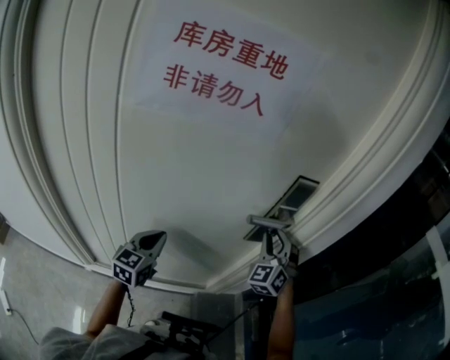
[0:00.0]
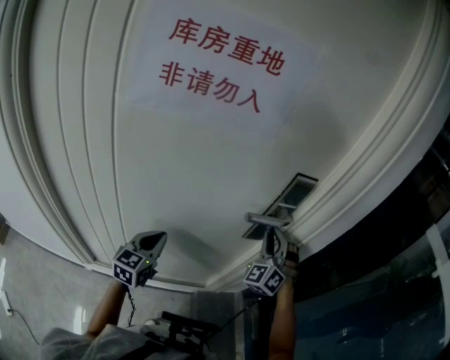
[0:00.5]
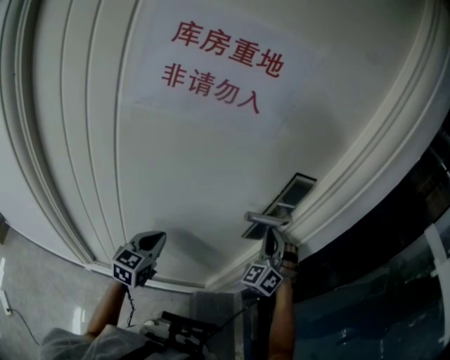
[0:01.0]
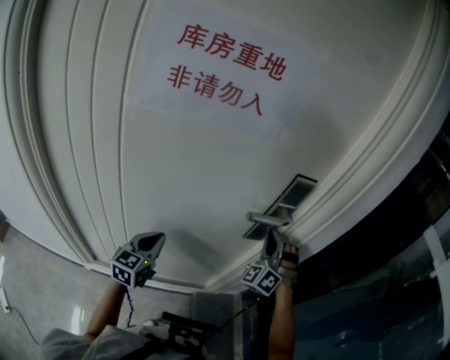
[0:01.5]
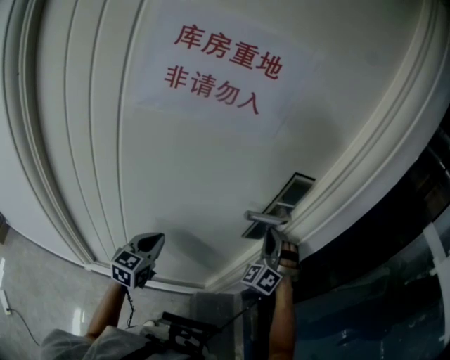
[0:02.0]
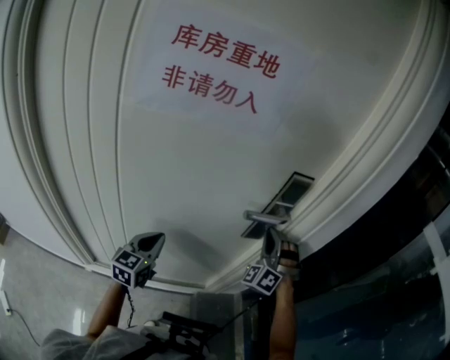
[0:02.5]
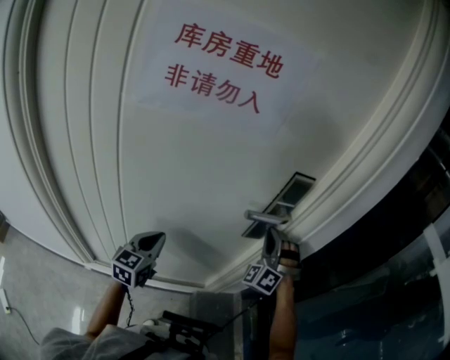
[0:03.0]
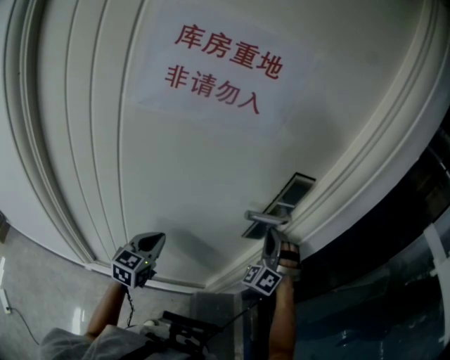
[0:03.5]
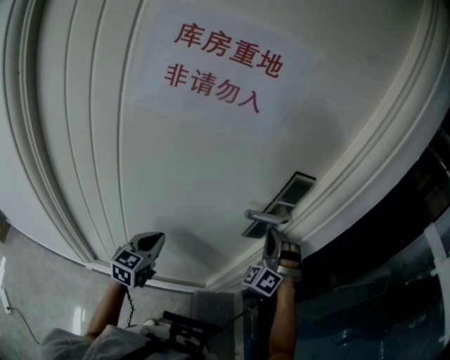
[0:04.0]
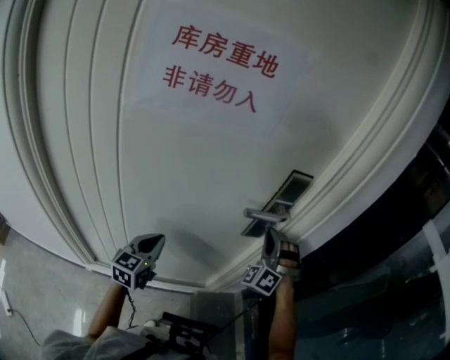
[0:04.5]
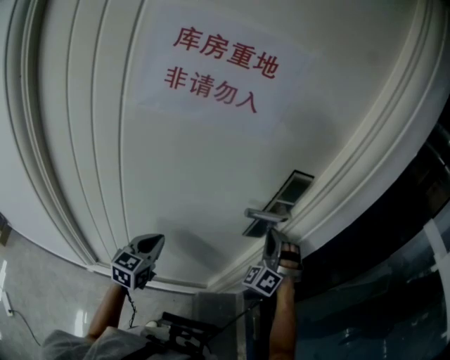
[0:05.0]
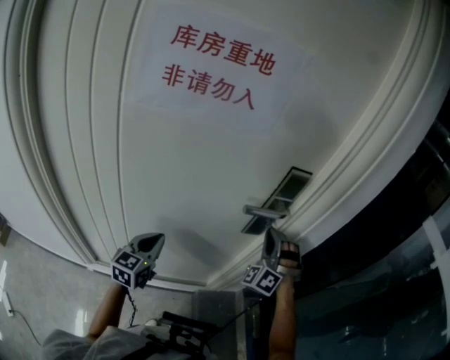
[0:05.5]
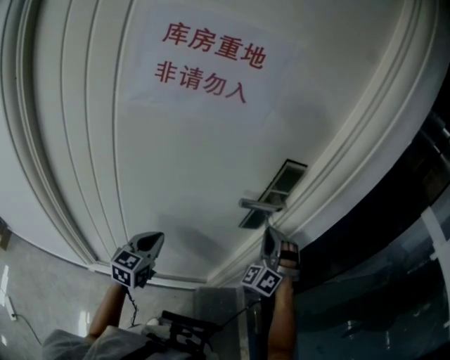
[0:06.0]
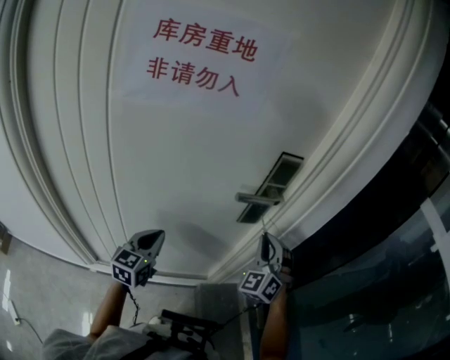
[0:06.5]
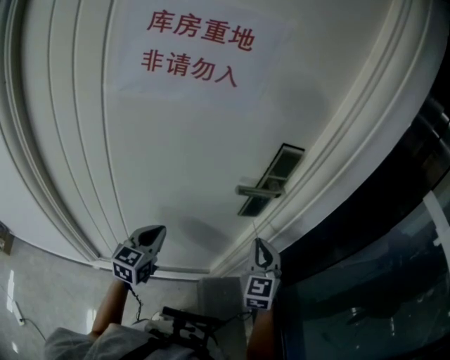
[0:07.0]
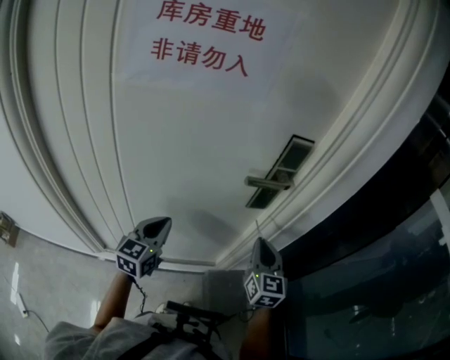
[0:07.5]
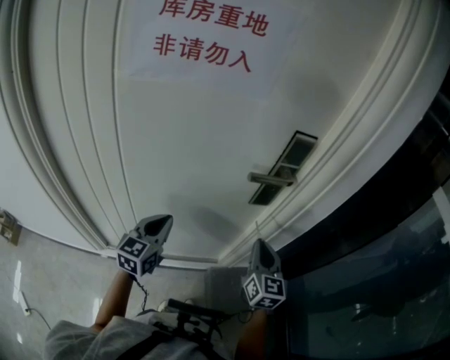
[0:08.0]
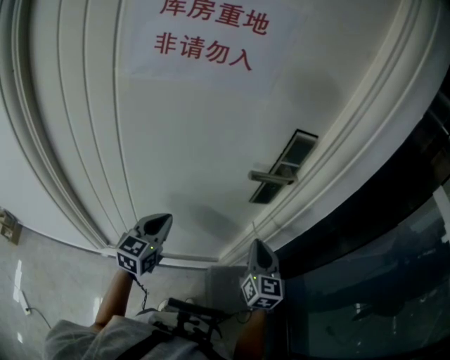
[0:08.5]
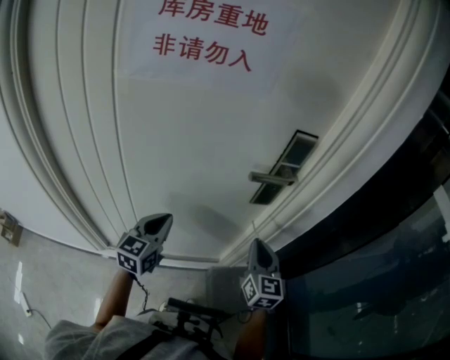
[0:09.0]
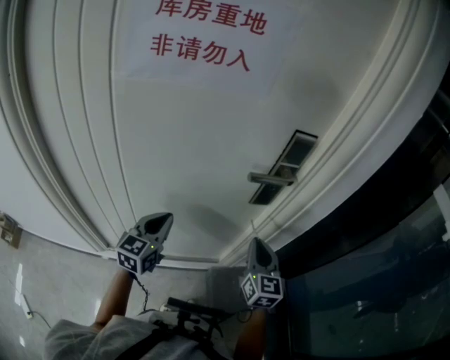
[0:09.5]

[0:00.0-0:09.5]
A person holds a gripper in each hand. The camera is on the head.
0:00.0 to 0:02.0: The right gripper turns by roughly 30 degrees, and closes its fingers.
0:02.0 to 0:04.0: There are only small adjustments of the grippers.
0:04.0 to 0:05.5: Both grippers stay put.
0:05.5 to 0:07.5: The right gripper is displaced backward and downward by approximately 10 cm, and twists some 80 degrees clockwise, seen from behind.
0:07.5 to 0:09.5: The grippers stay close to where they were, moving slightly.

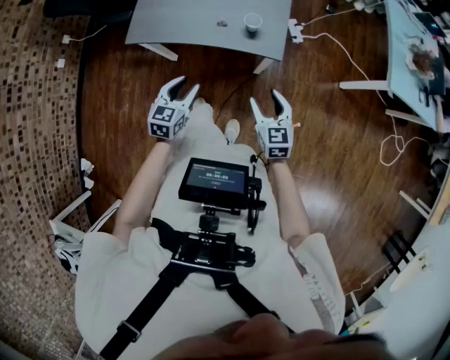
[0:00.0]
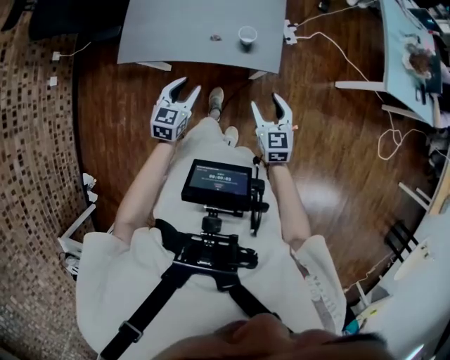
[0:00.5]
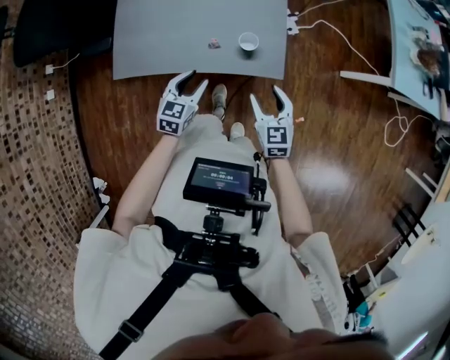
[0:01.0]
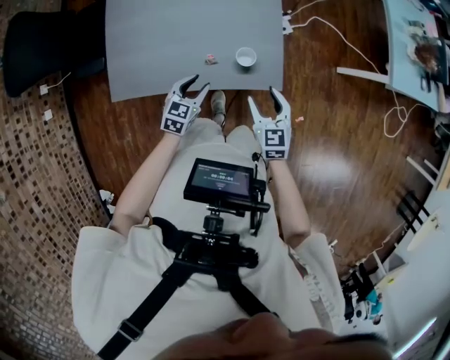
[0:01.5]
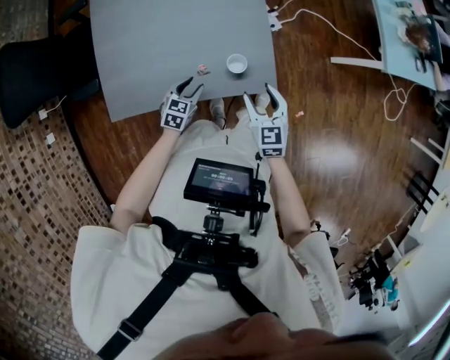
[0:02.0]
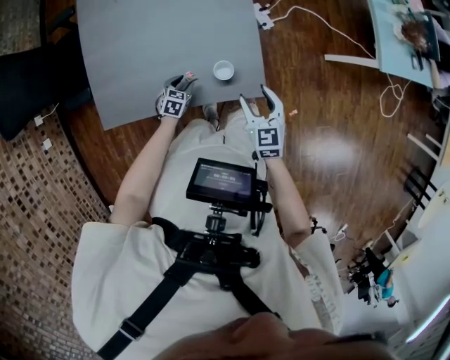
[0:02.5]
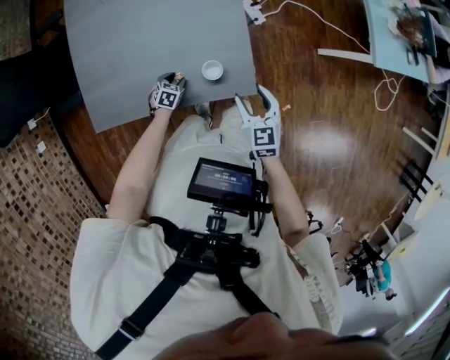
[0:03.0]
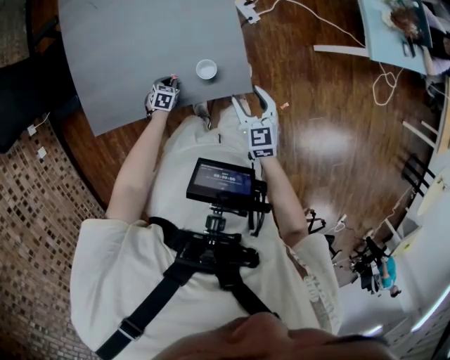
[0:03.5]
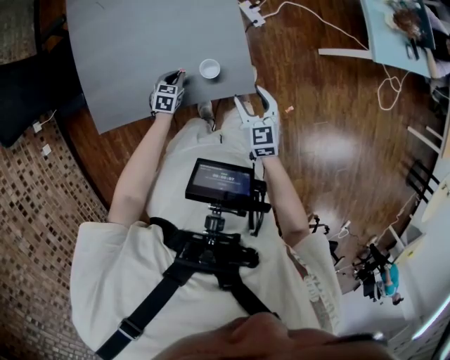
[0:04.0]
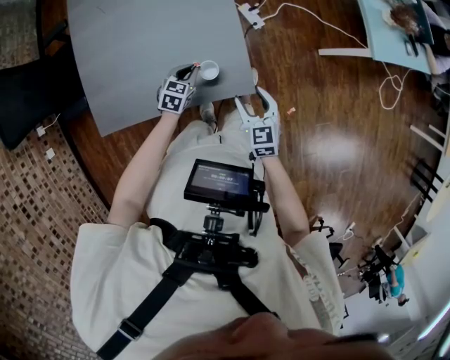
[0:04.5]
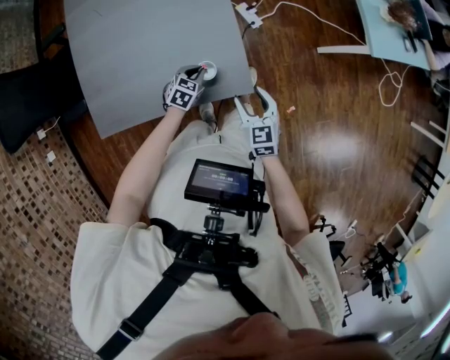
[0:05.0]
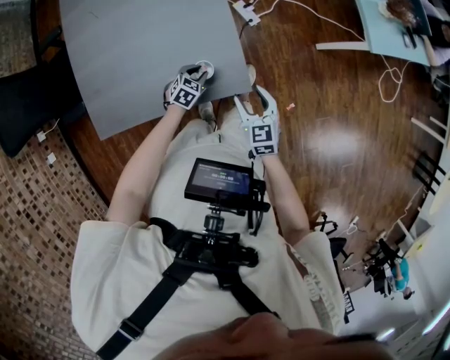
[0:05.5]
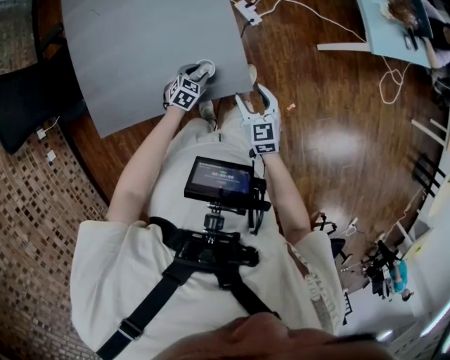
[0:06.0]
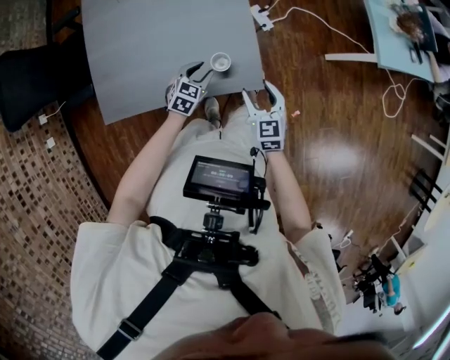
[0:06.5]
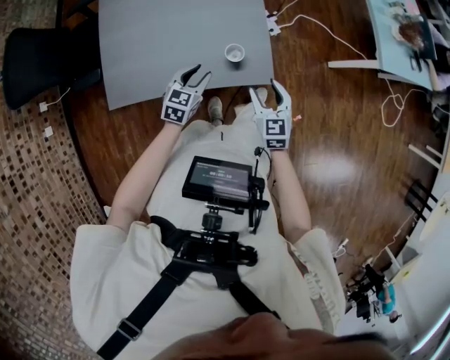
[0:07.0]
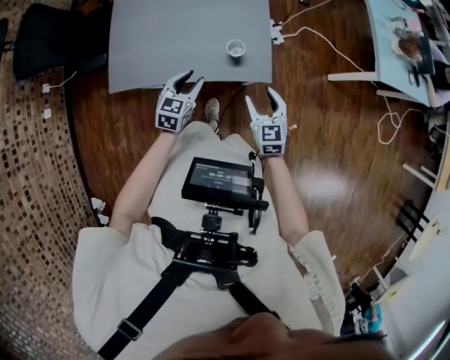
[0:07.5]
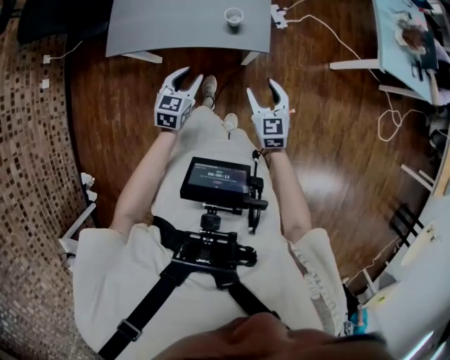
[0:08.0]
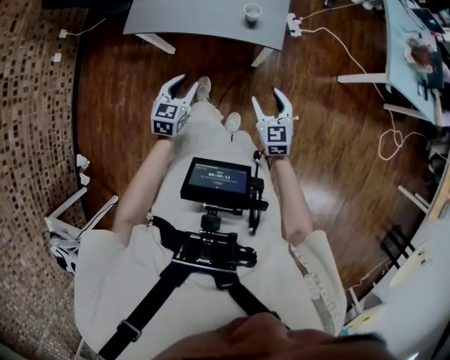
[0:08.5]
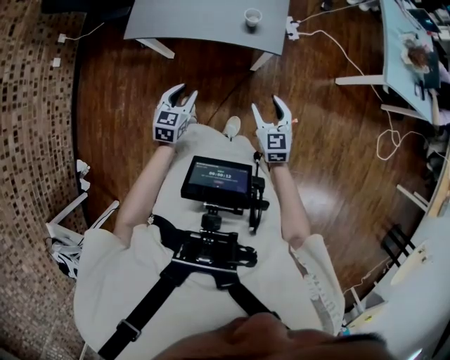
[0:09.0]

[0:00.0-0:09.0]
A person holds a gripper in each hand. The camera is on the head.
0:00.0 to 0:02.0: The left gripper is displaced forward and downward by roughly 30 cm, and turns by approximately 30 degrees; the right gripper travels forward by approximately 20 cm.
0:02.0 to 0:04.5: The right gripper travels to the right by roughly 5 cm; the left gripper travels forward and to the right by about 15 cm, travels downward and back again, roughly 15 cm each way, and closes up.
0:04.5 to 0:07.0: The right gripper moves roughly 5 cm. Meanwhile the left gripper is displaced backward and upward by about 15 cm, and opens its fingers.
0:07.0 to 0:09.0: The two grippers go about 25 cm backward. The left gripper swivels roughly 20 degrees.

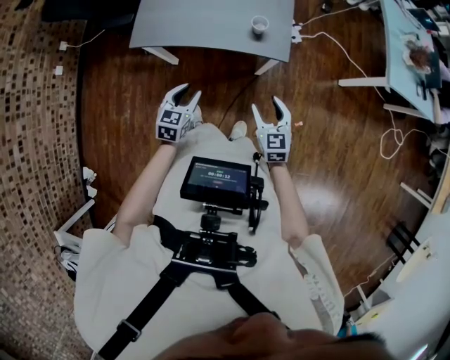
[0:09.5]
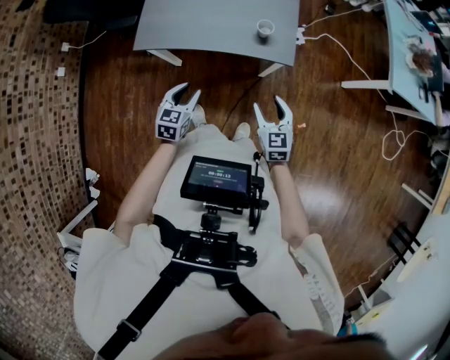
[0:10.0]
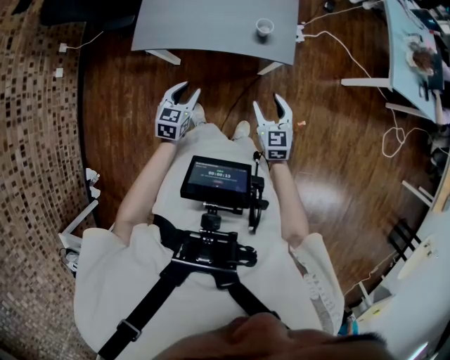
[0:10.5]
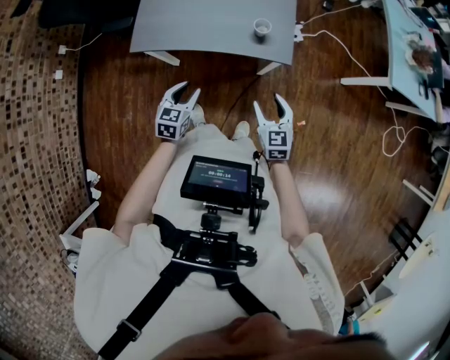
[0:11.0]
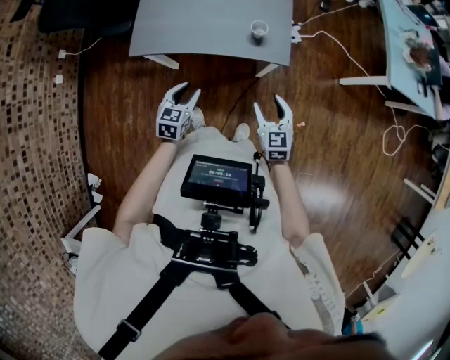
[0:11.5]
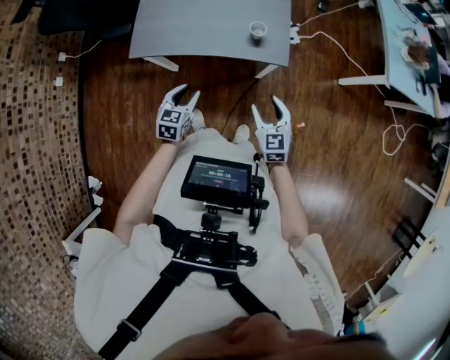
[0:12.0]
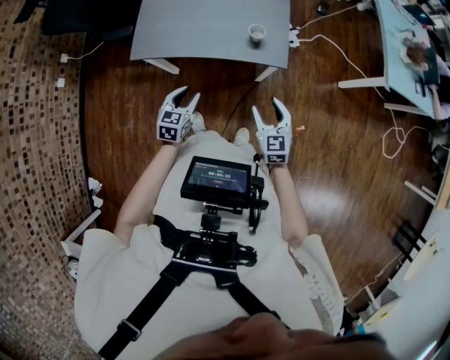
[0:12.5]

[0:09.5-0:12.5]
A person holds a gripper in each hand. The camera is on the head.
0:09.5 to 0:11.0: The grippers move only a little.
0:11.0 to 0:12.5: The two grippers keep their place.

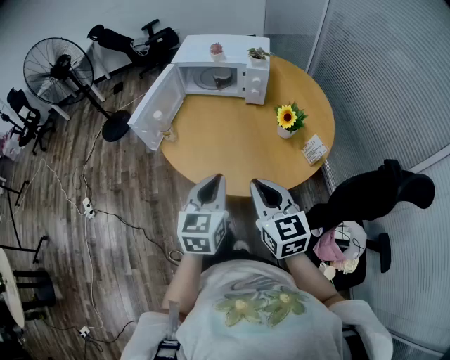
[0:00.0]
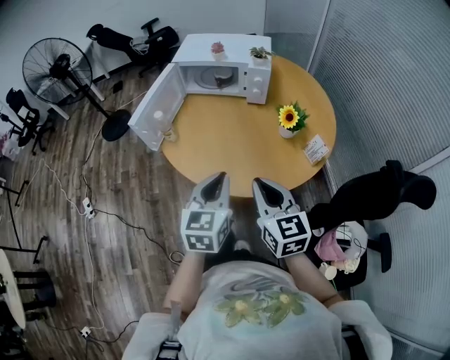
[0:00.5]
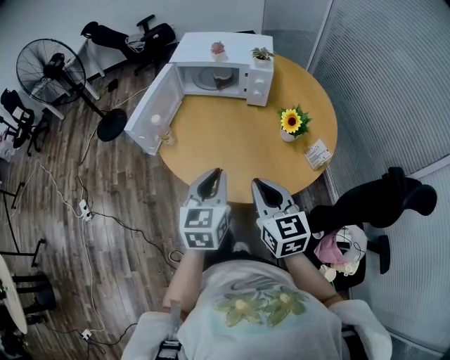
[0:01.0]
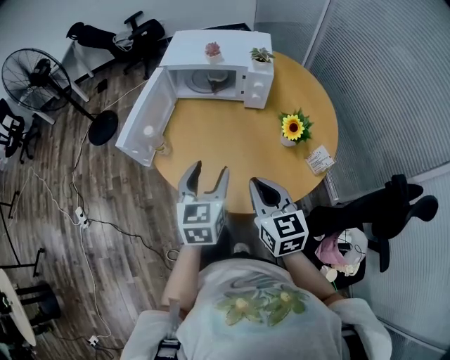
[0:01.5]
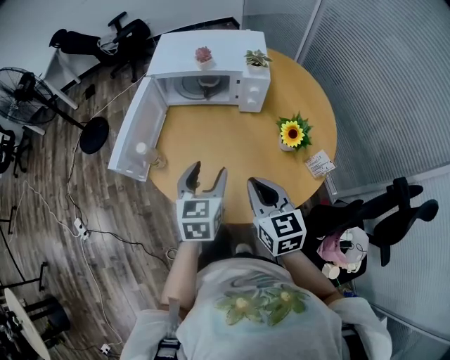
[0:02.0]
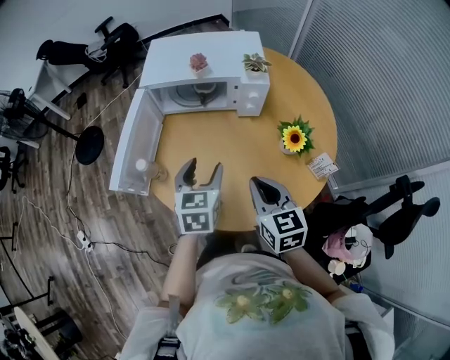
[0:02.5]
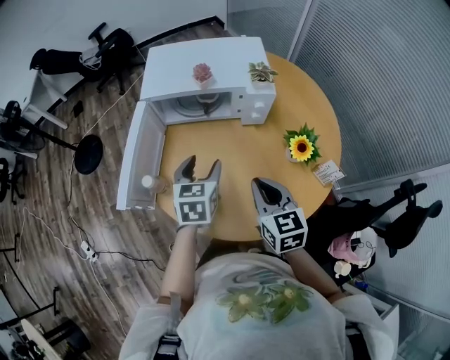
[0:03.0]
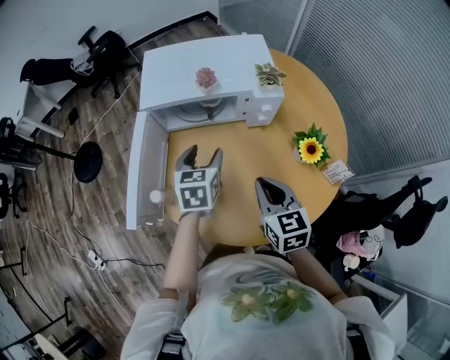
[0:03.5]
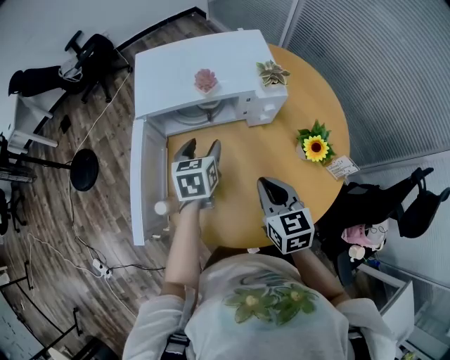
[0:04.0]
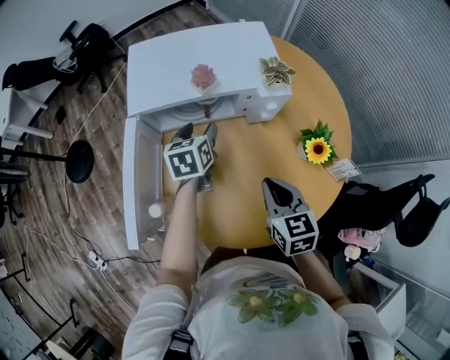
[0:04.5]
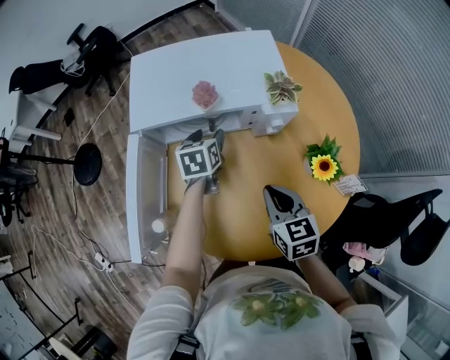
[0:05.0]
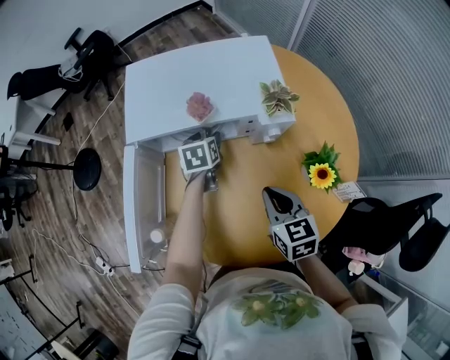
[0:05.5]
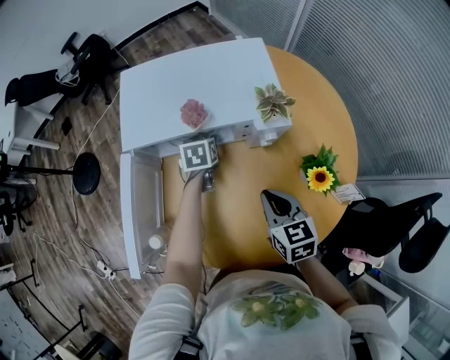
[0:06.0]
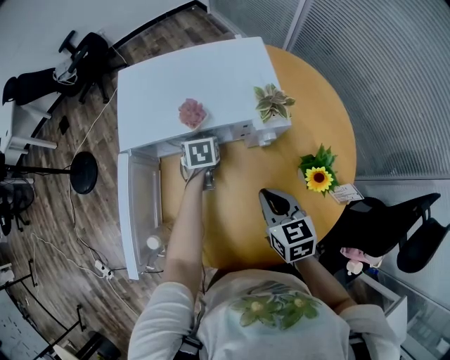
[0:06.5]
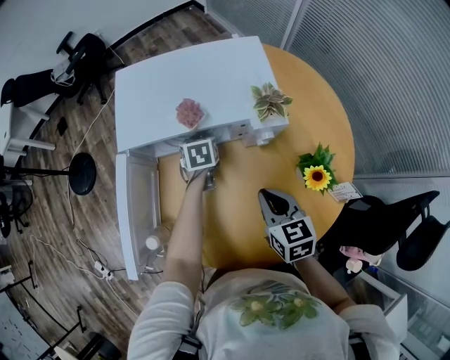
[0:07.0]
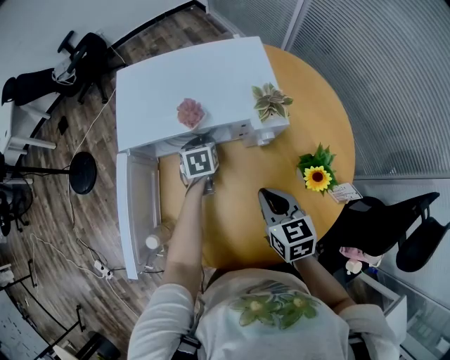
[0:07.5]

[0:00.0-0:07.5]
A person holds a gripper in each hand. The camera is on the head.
0:00.0 to 0:02.0: The grippers both shift forward by roughly 20 cm. The left gripper opens up.
0:02.0 to 0:04.0: The right gripper goes about 15 cm forward and to the left; the left gripper moves forward, about 25 cm.
0:04.0 to 0:05.5: The right gripper moves forward, roughly 5 cm, while the left gripper heads forward and downward, covering approximately 15 cm.
0:05.5 to 0:07.5: The left gripper closes up.
